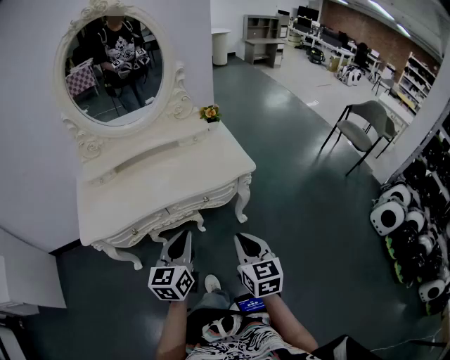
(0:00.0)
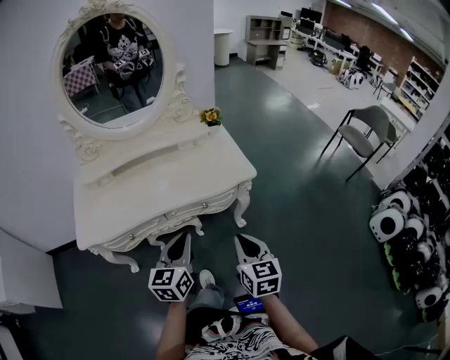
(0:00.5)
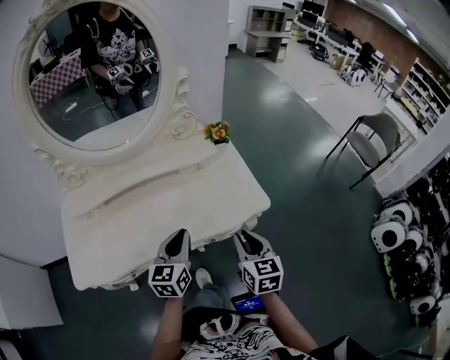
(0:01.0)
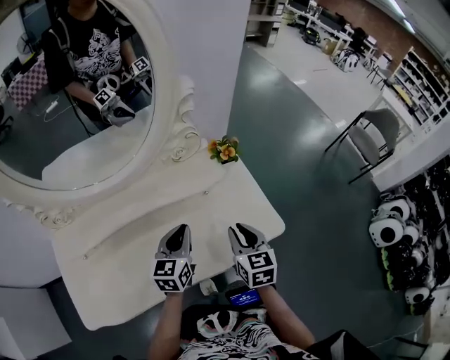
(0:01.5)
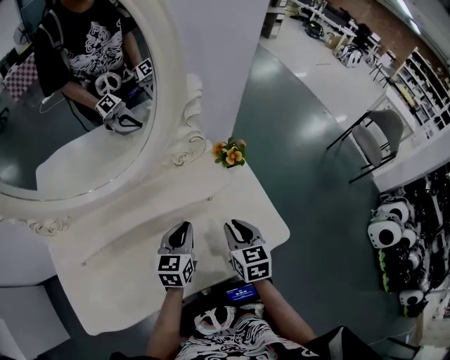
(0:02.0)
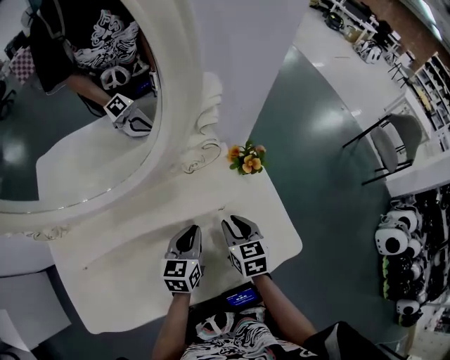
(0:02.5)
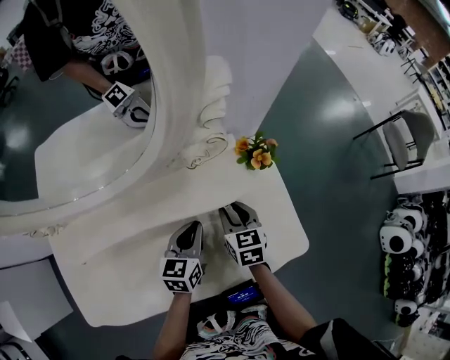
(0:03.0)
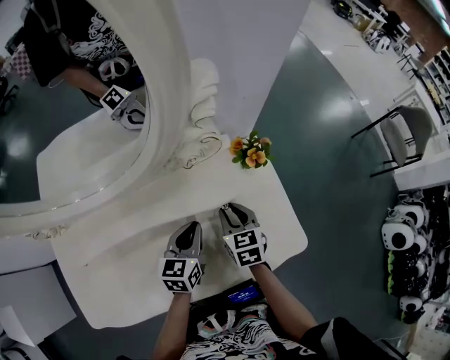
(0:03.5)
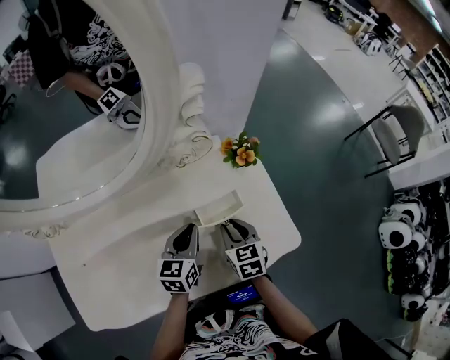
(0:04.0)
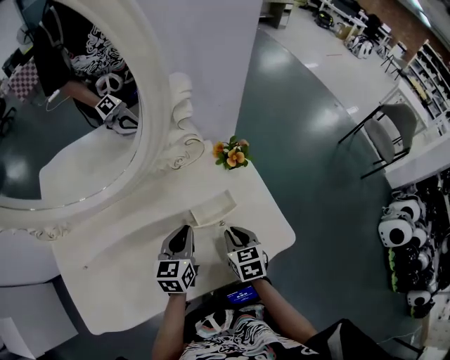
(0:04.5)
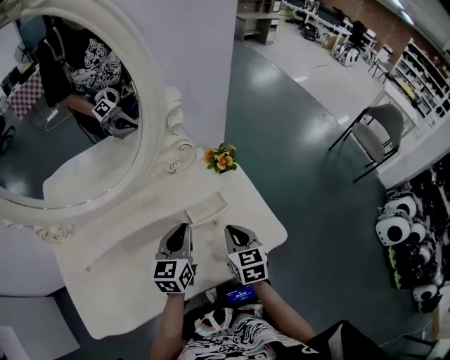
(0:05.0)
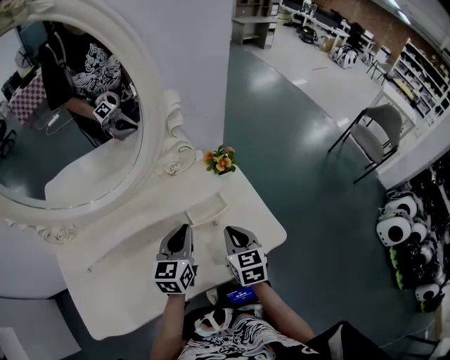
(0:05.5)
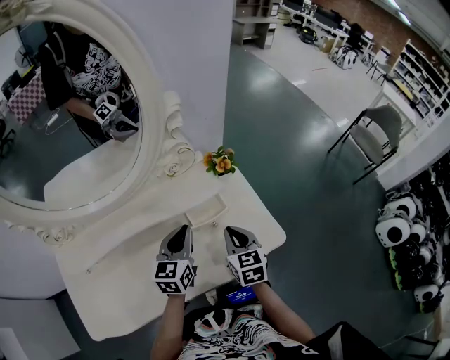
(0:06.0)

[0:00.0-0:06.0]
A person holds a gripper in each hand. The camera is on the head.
0:00.0 to 0:02.0: The pair of grippers is taken forward, roughly 50 cm.
0:02.0 to 0:04.0: The right gripper travels downward by about 10 cm, and travels forward and back again, roughly 10 cm each way.
0:04.0 to 0:06.0: The grippers both shift upward by roughly 10 cm. The right gripper closes up.

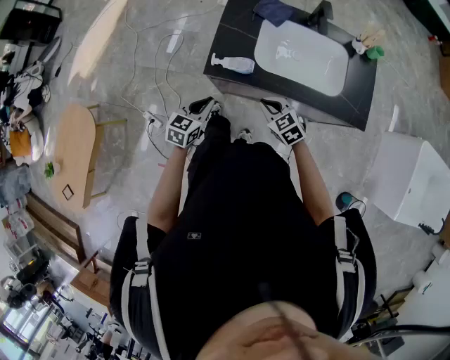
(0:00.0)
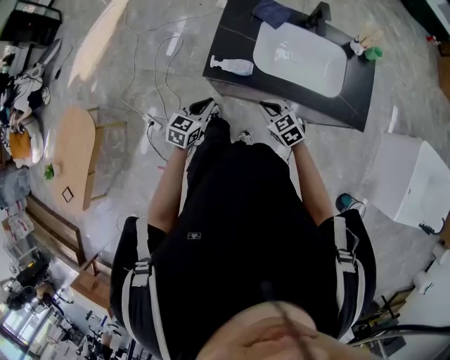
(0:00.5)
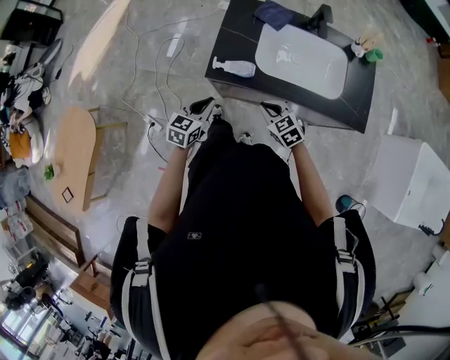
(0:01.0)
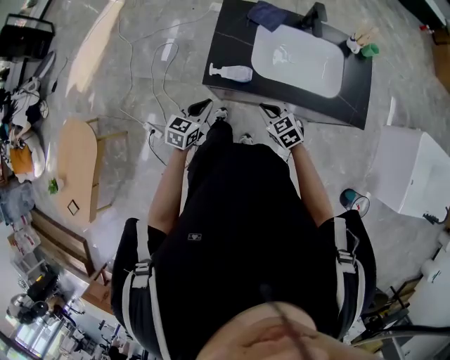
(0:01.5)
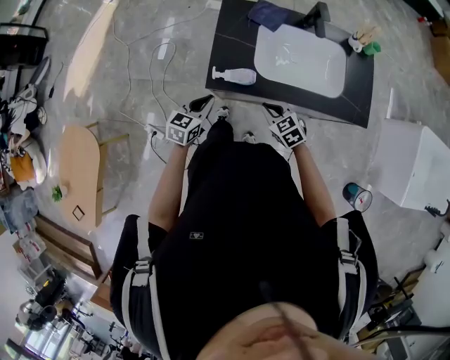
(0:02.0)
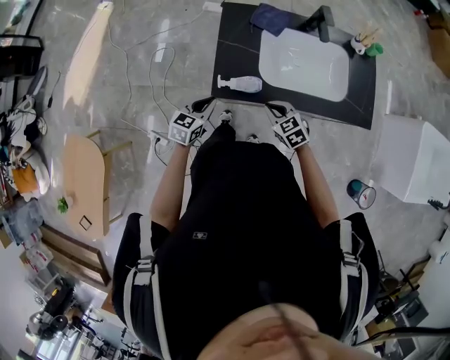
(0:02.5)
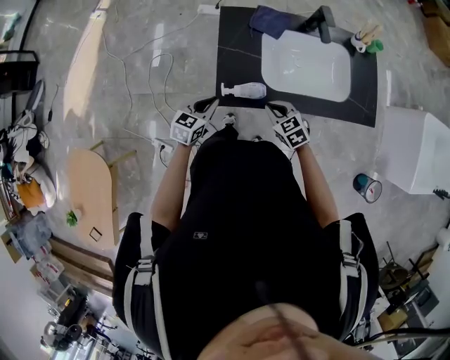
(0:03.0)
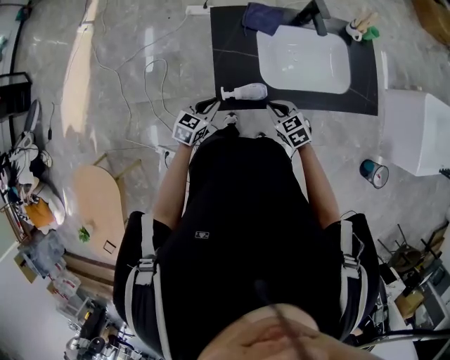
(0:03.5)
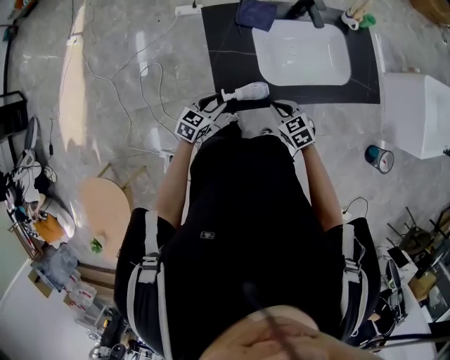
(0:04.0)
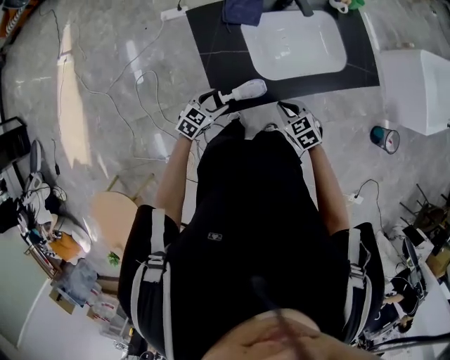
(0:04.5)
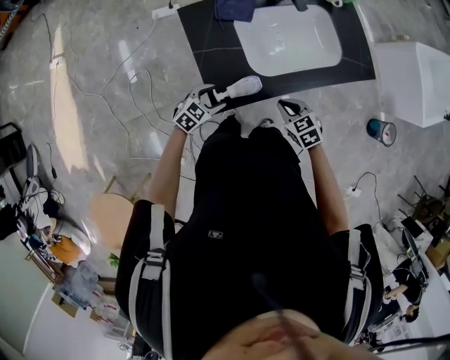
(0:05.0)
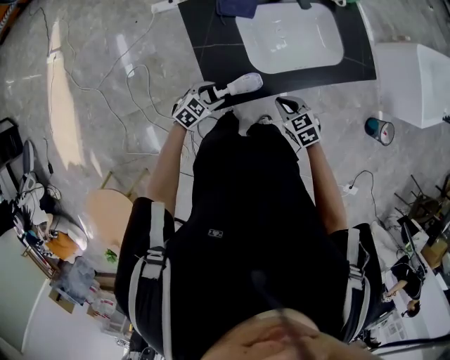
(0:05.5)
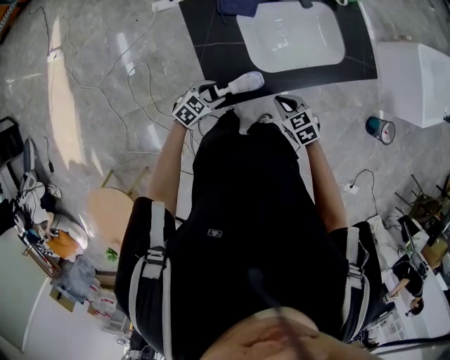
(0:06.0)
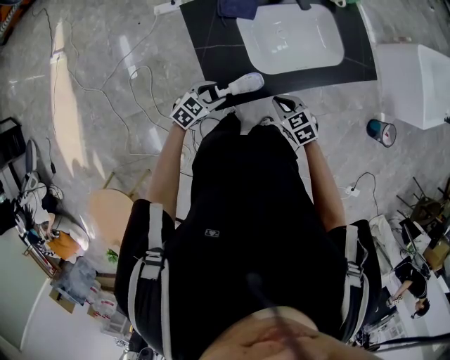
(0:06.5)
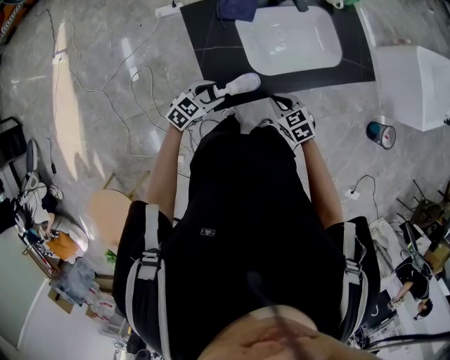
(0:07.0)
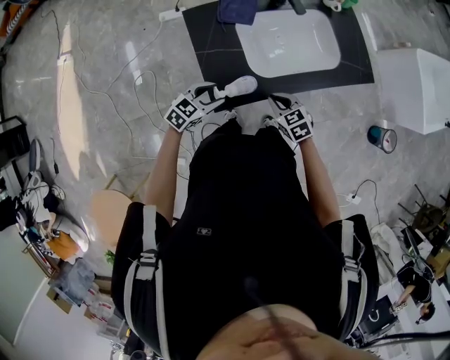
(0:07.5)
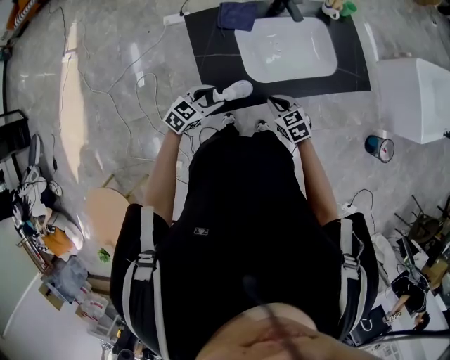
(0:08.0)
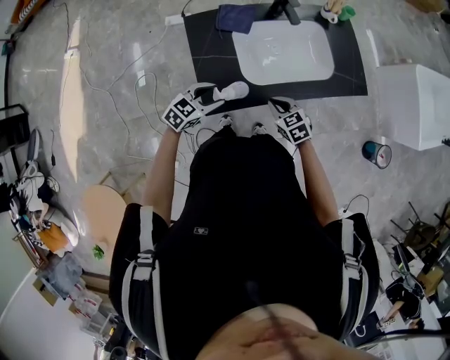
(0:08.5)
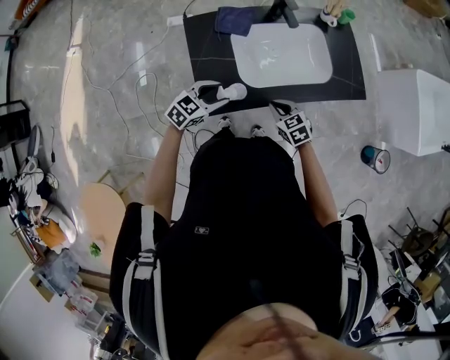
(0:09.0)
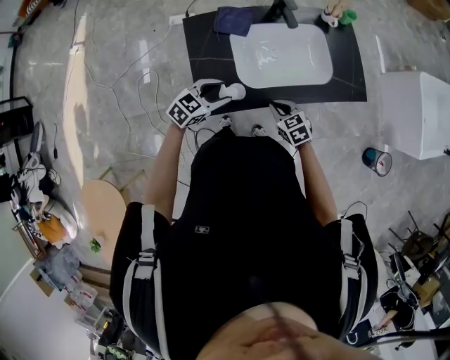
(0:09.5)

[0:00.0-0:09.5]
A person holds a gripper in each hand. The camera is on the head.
0:00.0 to 0:02.0: The left gripper travels forward by roughly 5 cm.
0:02.0 to 0:04.0: The right gripper goes some 5 cm forward. Meanwhile the left gripper heads forward and downward, covering roughly 10 cm, changes its angle by about 30 degrees, and opens its fingers.
0:04.0 to 0:05.5: The left gripper shifts roughly 5 cm downward, rotates roughly 30 degrees, and opens.
0:05.5 to 0:07.5: The left gripper moves upward, some 10 cm.
0:07.5 to 0:09.5: The right gripper goes approximately 5 cm to the right. Meanwhile the left gripper moves to the right and upward, some 10 cm.

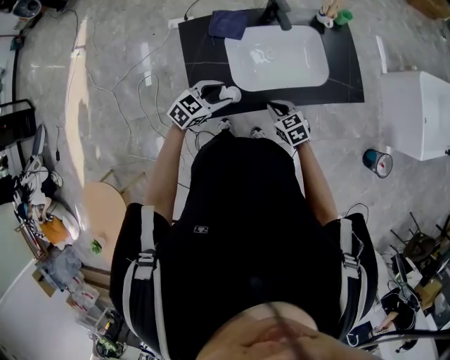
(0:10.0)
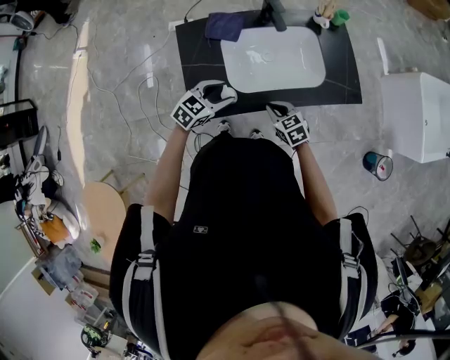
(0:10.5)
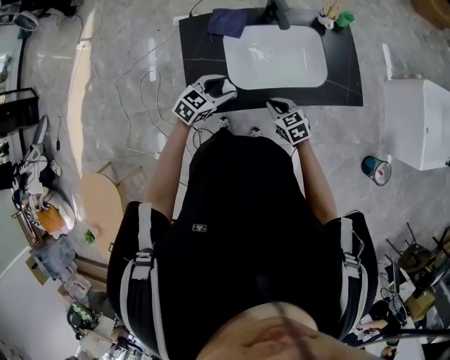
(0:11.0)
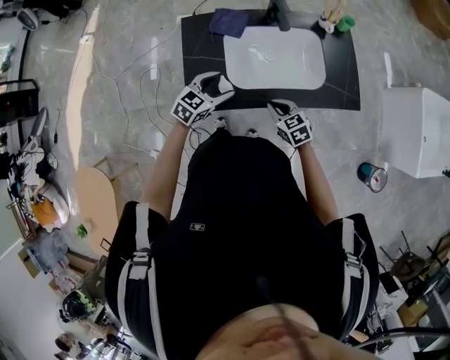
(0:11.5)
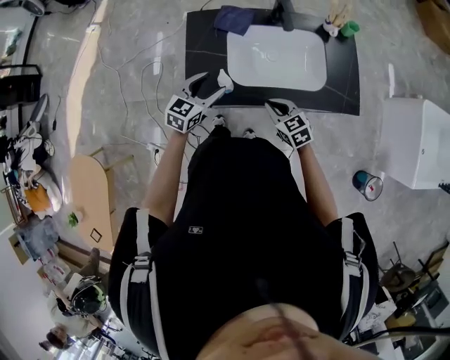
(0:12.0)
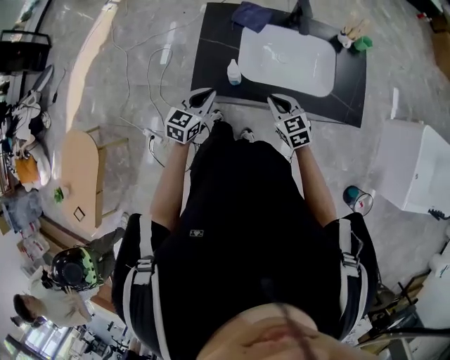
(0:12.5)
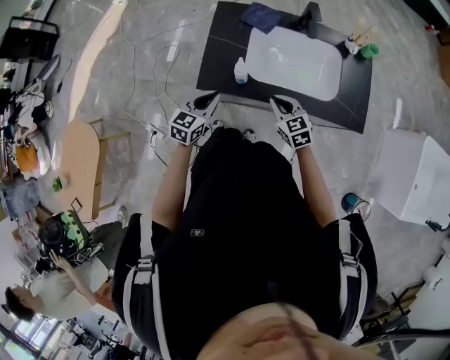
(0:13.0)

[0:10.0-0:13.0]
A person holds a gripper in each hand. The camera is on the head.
0:10.0 to 0:11.5: The grippers make only small movements.
0:11.5 to 0:13.0: The left gripper goes about 15 cm backward and to the left, swivels some 30 degrees, and closes its fingers.

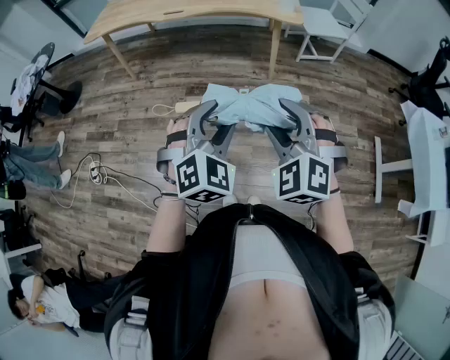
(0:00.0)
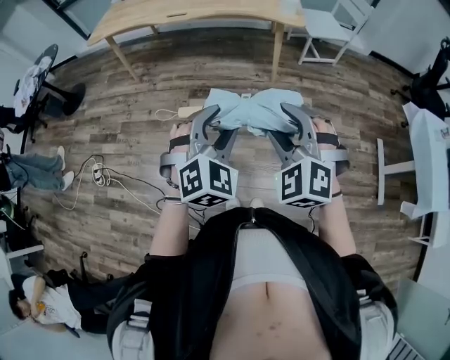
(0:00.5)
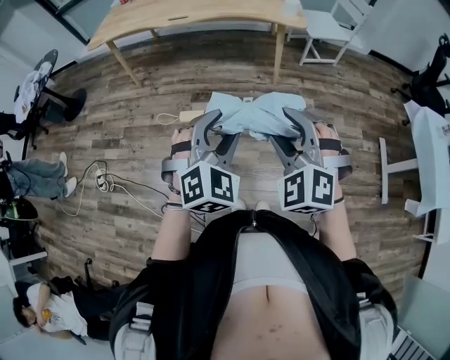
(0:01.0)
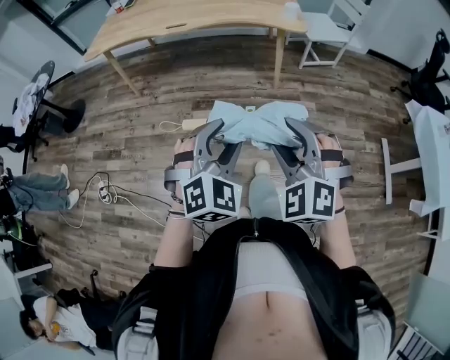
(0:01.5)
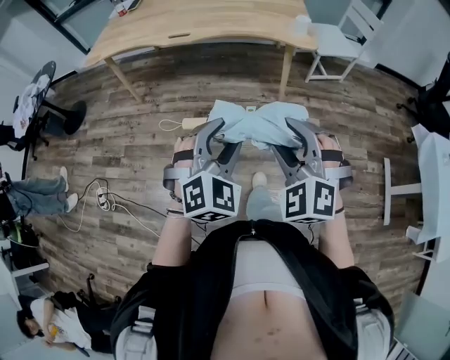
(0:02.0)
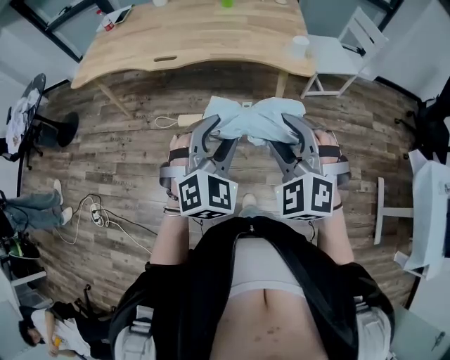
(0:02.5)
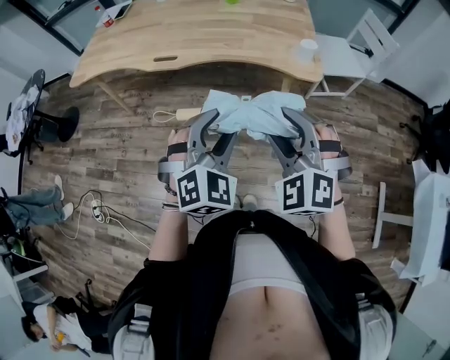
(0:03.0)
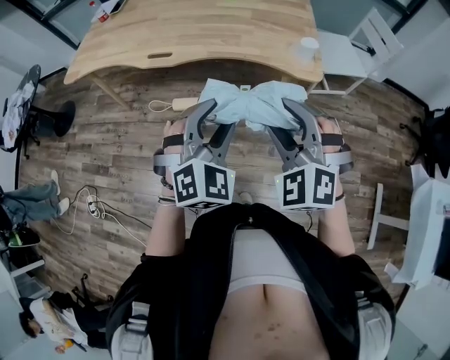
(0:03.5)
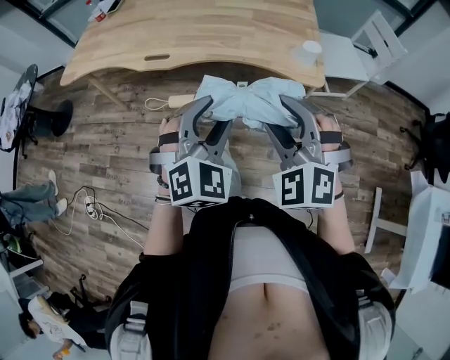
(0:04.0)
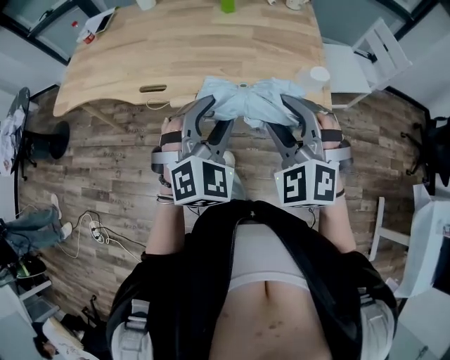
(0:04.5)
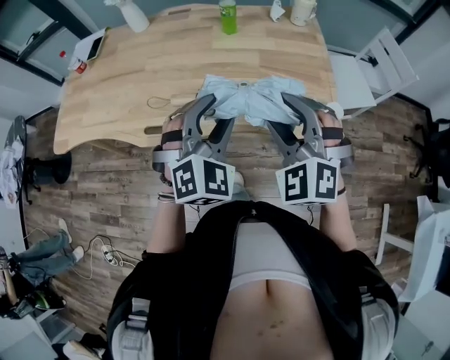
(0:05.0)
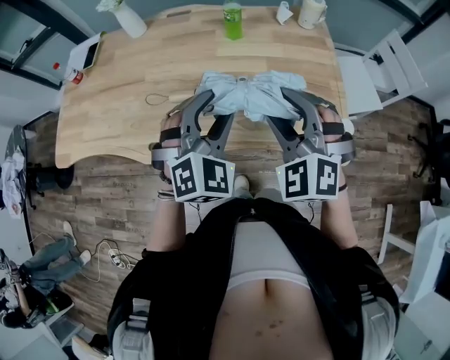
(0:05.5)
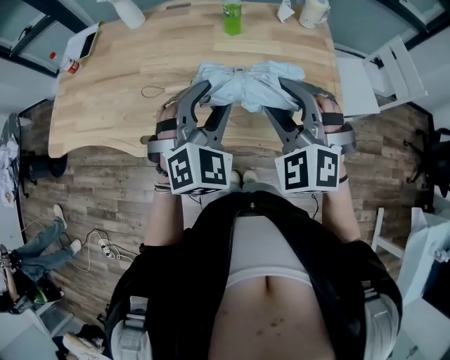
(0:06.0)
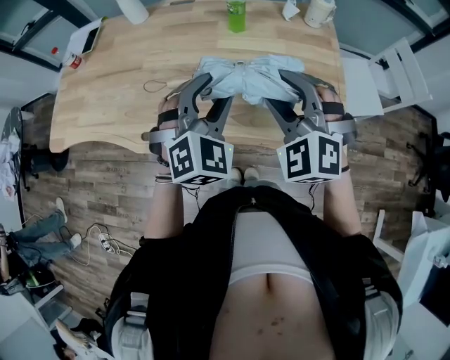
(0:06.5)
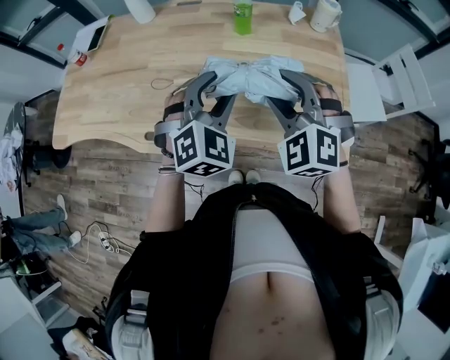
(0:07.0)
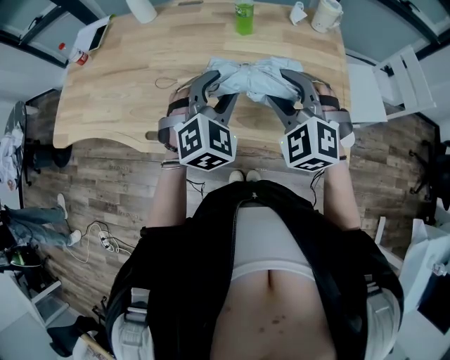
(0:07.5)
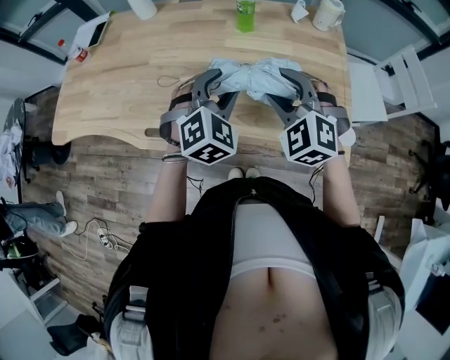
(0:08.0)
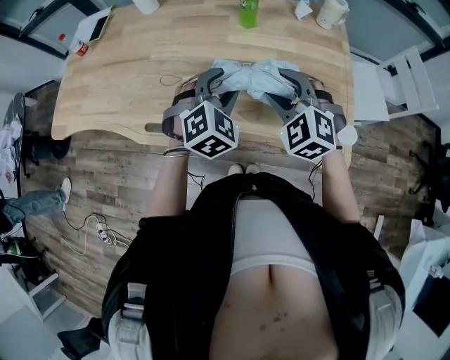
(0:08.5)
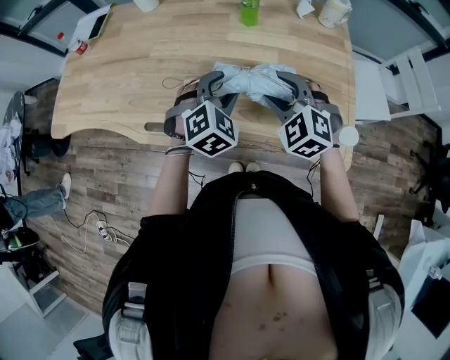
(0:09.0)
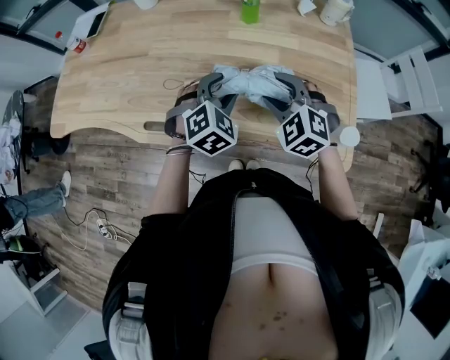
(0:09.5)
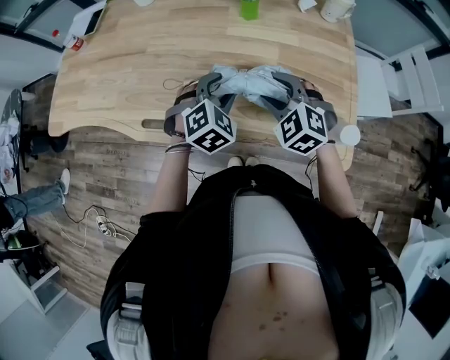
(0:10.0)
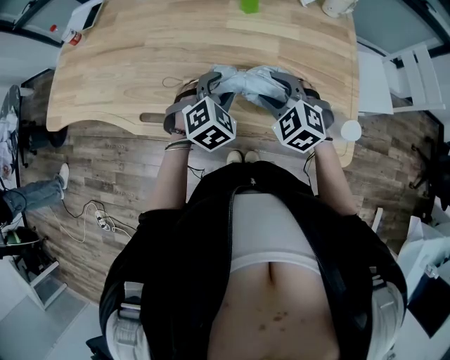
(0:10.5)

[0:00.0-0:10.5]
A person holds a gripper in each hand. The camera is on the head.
0:00.0 to 0:02.0: The two grippers go some 10 cm forward.
0:02.0 to 0:04.0: Both grippers move forward, roughly 30 cm.
0:04.0 to 0:06.5: The two grippers travel together, forward, approximately 40 cm.
0:06.5 to 0:08.5: The grippers both shift downward by some 10 cm.
0:08.5 to 0:10.5: Both grippers move downward, roughly 10 cm.
